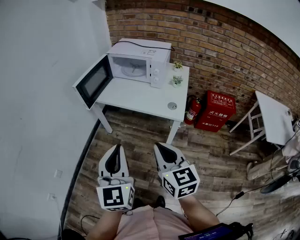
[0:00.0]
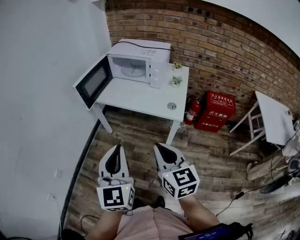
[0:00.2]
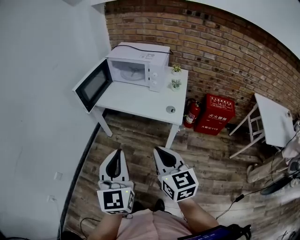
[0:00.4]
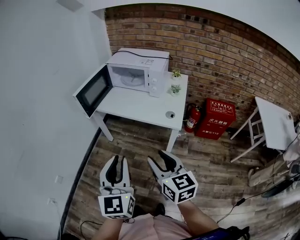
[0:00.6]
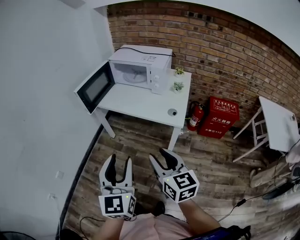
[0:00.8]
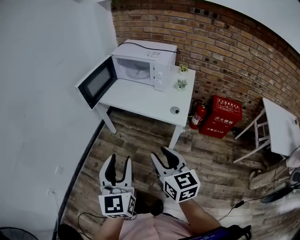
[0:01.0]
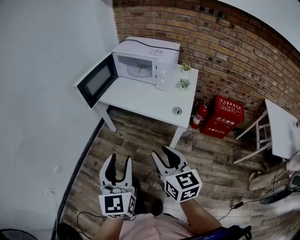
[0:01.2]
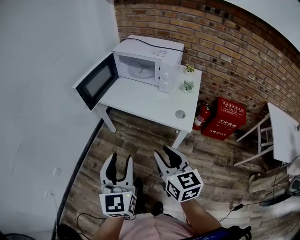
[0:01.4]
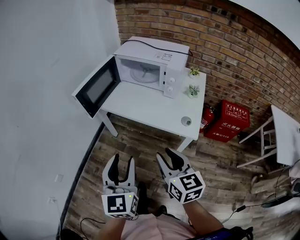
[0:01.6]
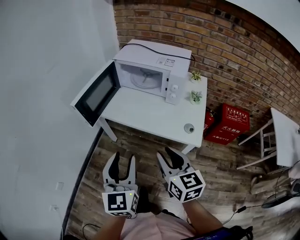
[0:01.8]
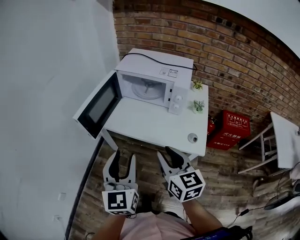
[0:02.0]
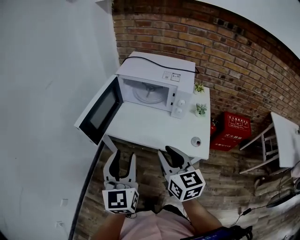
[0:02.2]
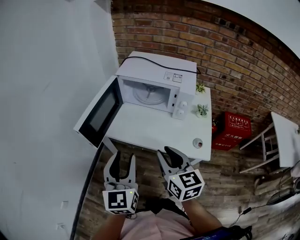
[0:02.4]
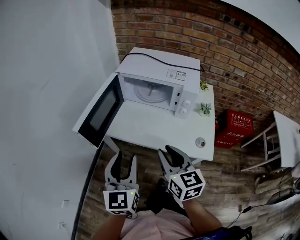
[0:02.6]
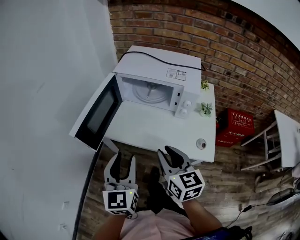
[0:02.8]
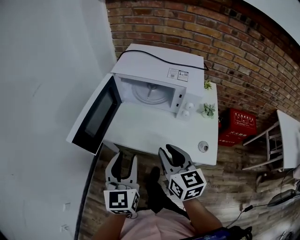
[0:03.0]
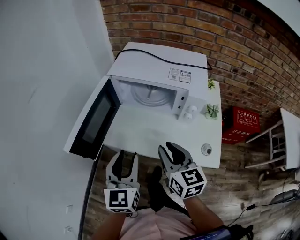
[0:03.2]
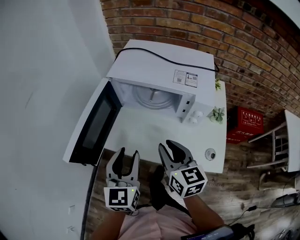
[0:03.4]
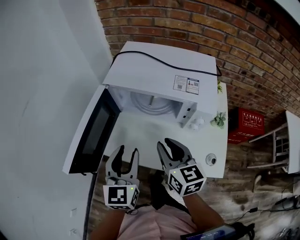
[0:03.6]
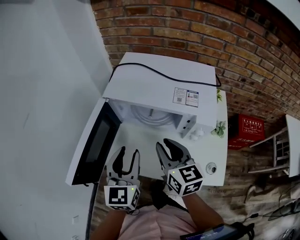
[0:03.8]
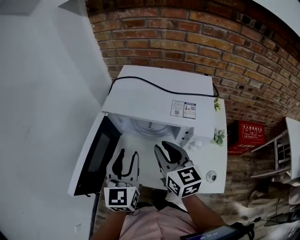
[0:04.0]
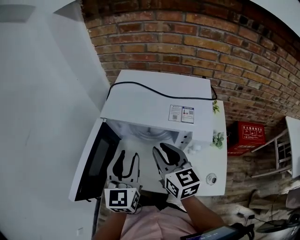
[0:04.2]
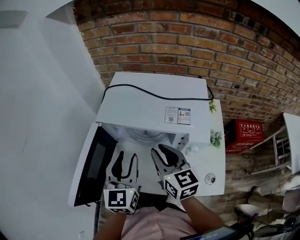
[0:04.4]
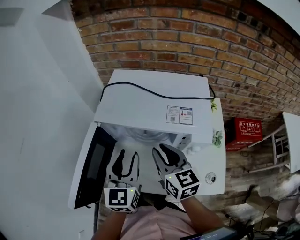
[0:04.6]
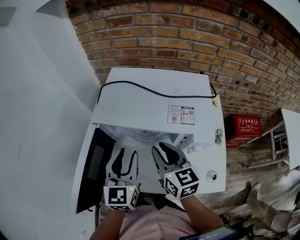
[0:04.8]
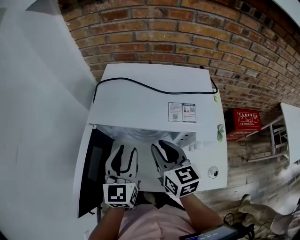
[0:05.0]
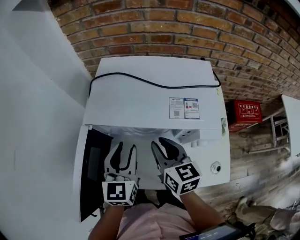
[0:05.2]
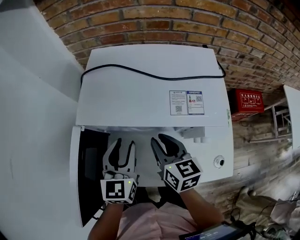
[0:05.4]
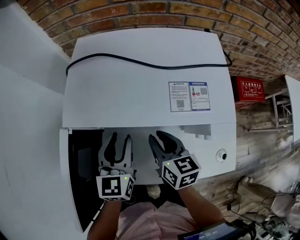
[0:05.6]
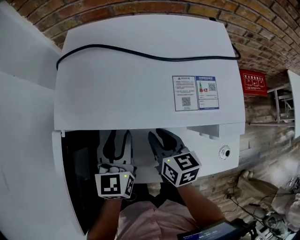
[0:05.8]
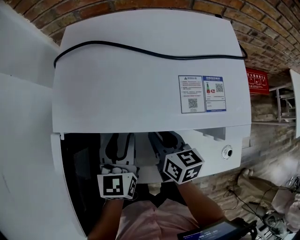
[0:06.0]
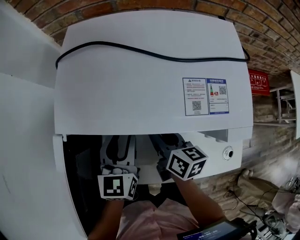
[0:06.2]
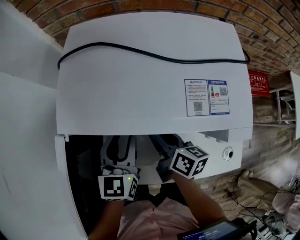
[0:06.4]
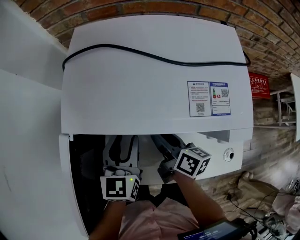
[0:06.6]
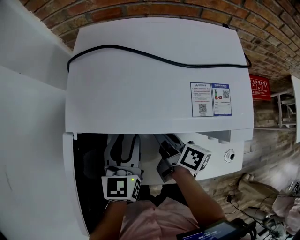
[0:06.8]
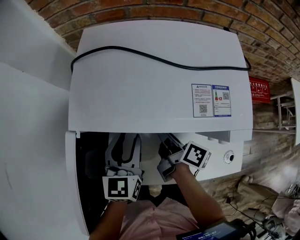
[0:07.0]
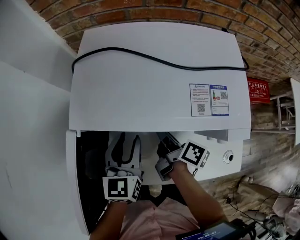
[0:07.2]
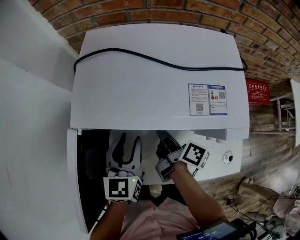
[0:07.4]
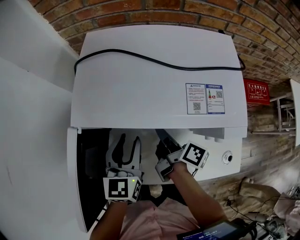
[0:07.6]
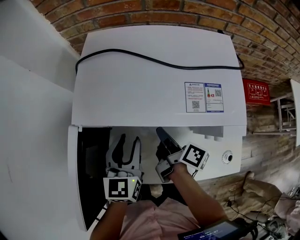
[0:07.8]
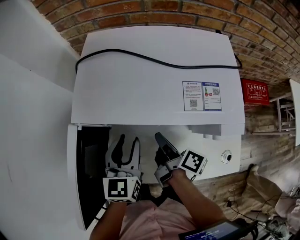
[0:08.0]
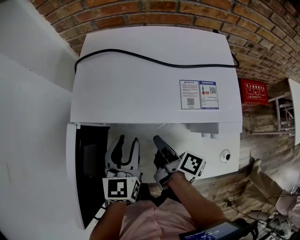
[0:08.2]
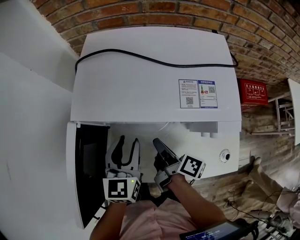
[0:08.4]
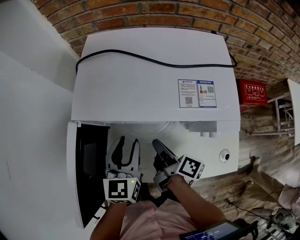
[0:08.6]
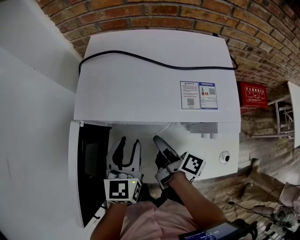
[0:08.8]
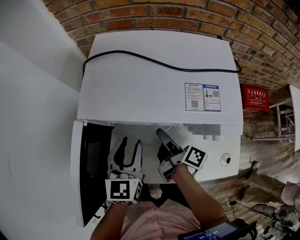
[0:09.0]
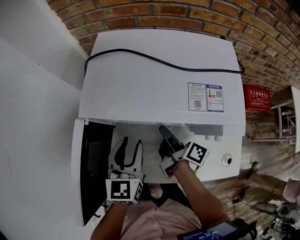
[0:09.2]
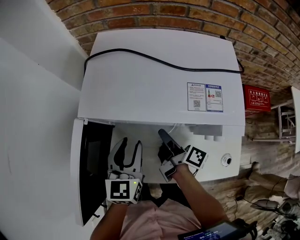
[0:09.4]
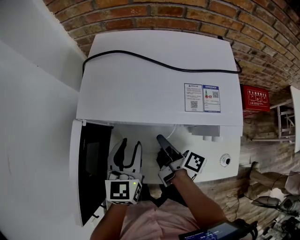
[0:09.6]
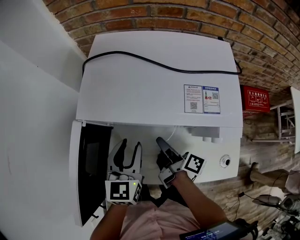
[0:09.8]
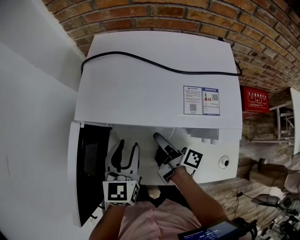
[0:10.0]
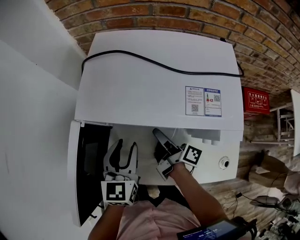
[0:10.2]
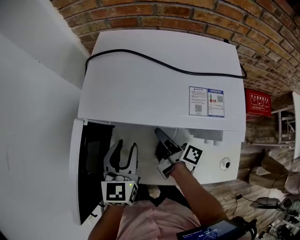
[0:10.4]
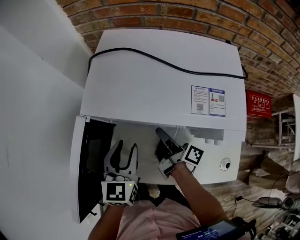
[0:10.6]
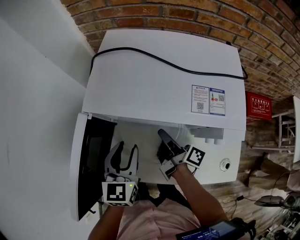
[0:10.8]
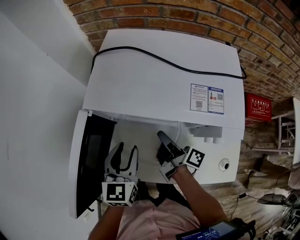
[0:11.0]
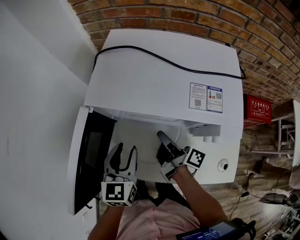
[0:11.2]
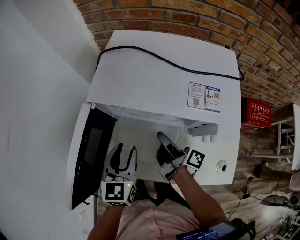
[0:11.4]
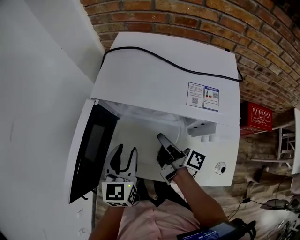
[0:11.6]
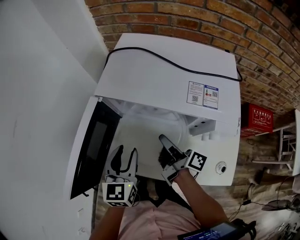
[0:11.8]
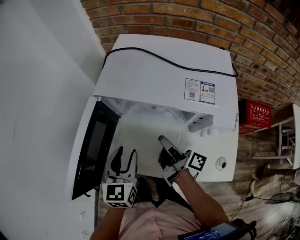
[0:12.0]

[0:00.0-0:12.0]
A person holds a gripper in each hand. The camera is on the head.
0:00.0 to 0:01.6: Both grippers move forward and downward, about 15 cm. The left gripper opens up; the right gripper opens its fingers.
0:01.6 to 0:03.0: Both grippers travel together forward, about 25 cm.
0:03.0 to 0:04.4: Both grippers move forward, roughly 20 cm.
0:04.4 to 0:06.0: The left gripper is displaced downward and forward by roughly 15 cm, while the right gripper moves downward, some 20 cm, and rotates roughly 30 degrees.
0:06.0 to 0:07.6: The right gripper rolls clockwise, seen from behind, by roughly 40 degrees, and closes.
0:07.6 to 0:09.0: The right gripper opens.
0:09.0 to 0:10.4: The right gripper closes.
0:10.4 to 0:12.0: Both grippers move backward, roughly 5 cm.

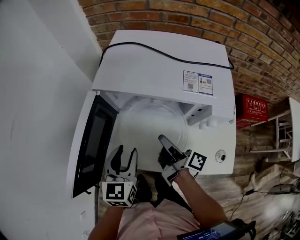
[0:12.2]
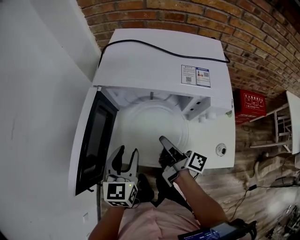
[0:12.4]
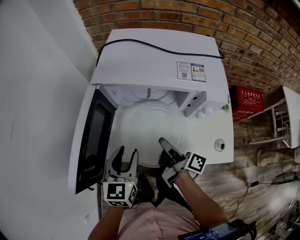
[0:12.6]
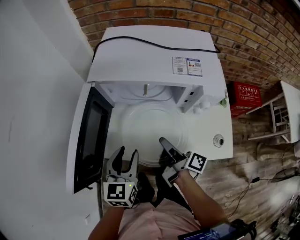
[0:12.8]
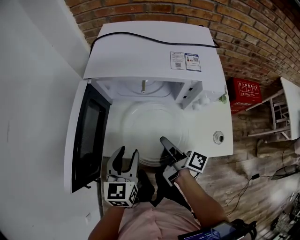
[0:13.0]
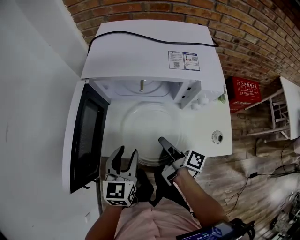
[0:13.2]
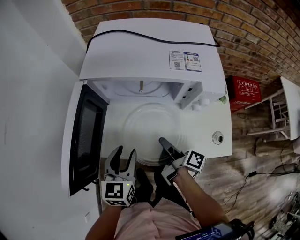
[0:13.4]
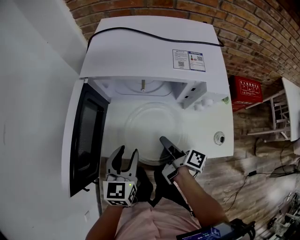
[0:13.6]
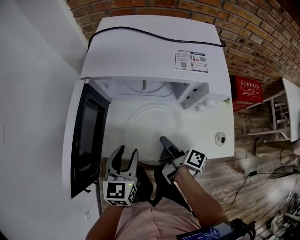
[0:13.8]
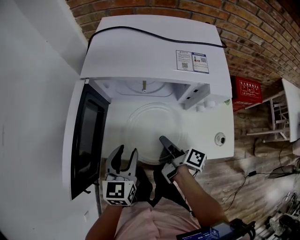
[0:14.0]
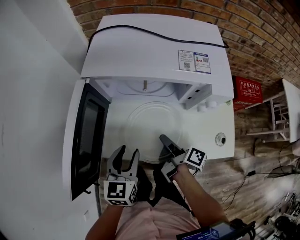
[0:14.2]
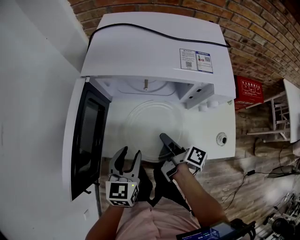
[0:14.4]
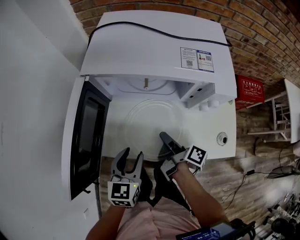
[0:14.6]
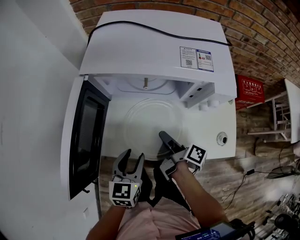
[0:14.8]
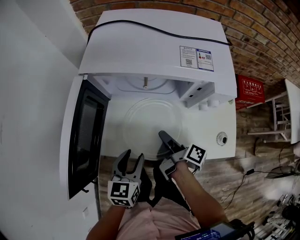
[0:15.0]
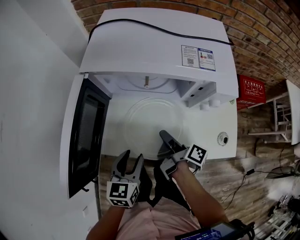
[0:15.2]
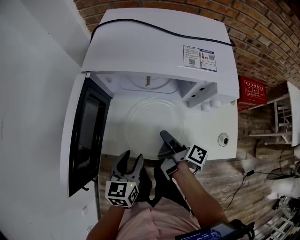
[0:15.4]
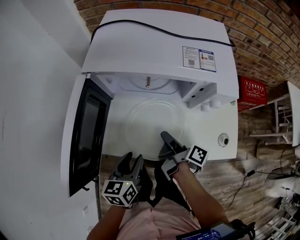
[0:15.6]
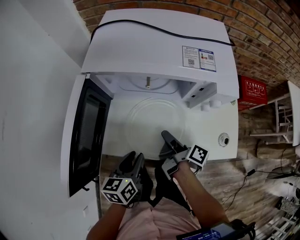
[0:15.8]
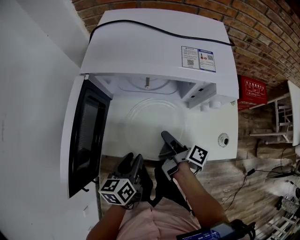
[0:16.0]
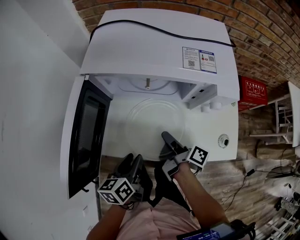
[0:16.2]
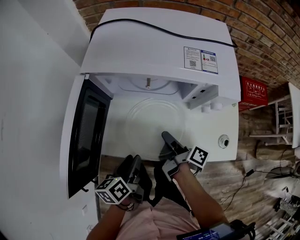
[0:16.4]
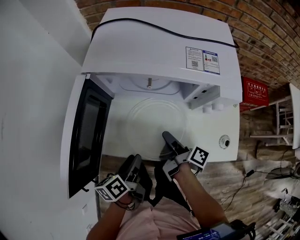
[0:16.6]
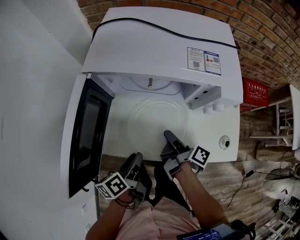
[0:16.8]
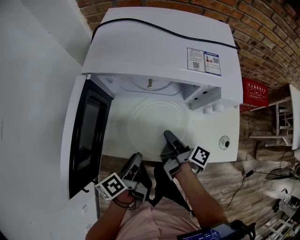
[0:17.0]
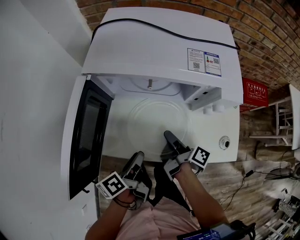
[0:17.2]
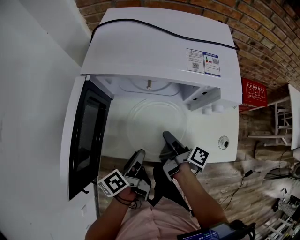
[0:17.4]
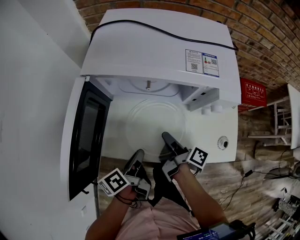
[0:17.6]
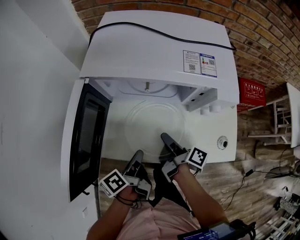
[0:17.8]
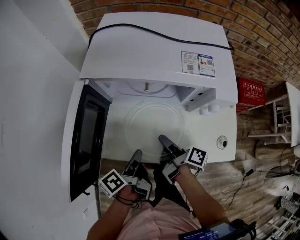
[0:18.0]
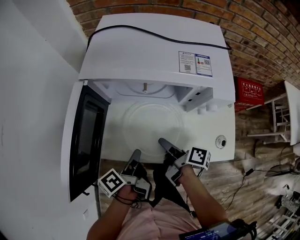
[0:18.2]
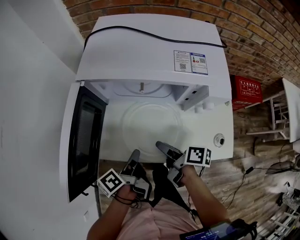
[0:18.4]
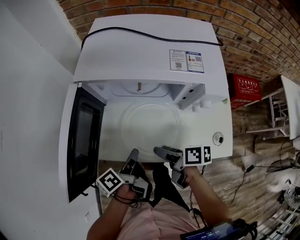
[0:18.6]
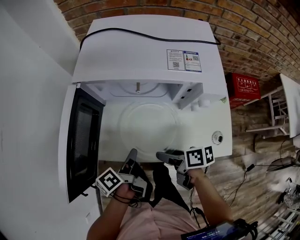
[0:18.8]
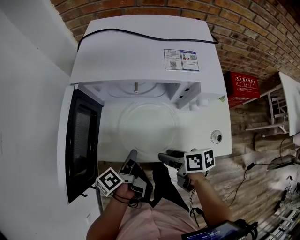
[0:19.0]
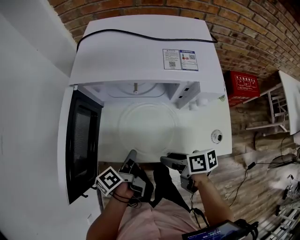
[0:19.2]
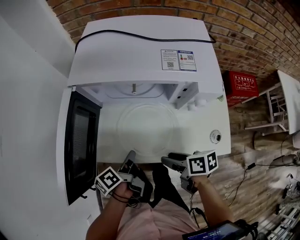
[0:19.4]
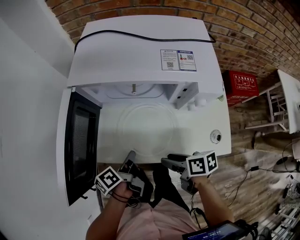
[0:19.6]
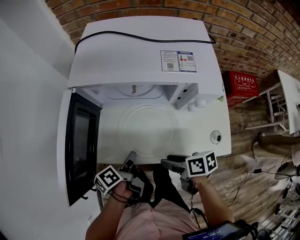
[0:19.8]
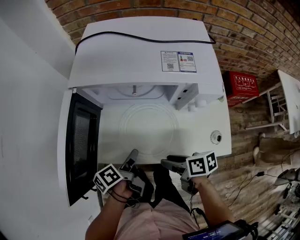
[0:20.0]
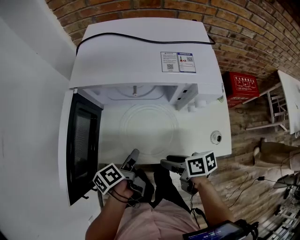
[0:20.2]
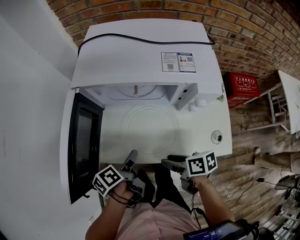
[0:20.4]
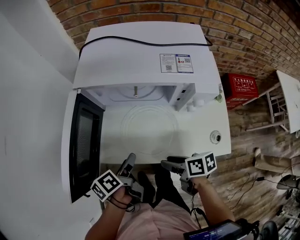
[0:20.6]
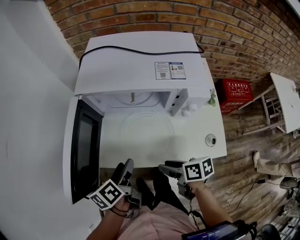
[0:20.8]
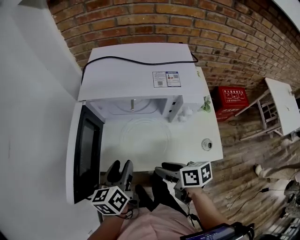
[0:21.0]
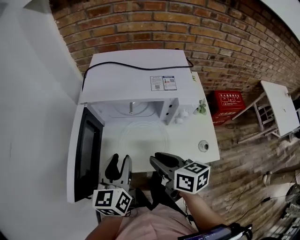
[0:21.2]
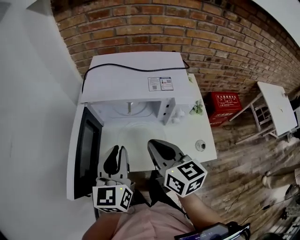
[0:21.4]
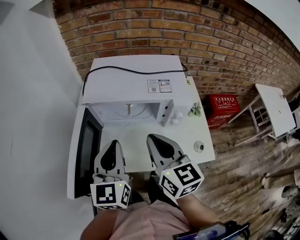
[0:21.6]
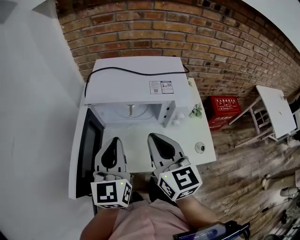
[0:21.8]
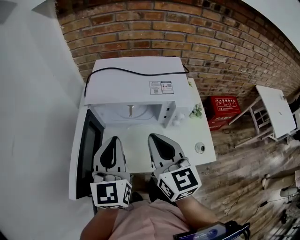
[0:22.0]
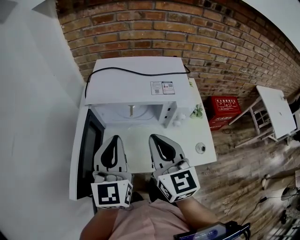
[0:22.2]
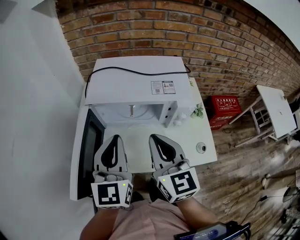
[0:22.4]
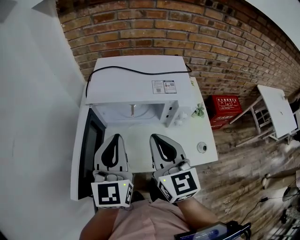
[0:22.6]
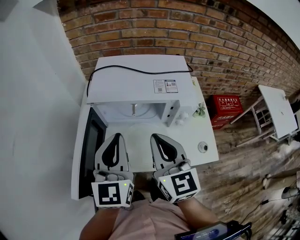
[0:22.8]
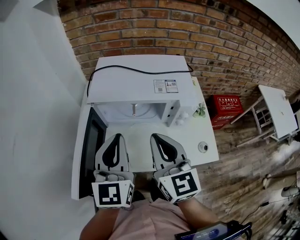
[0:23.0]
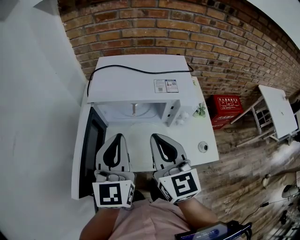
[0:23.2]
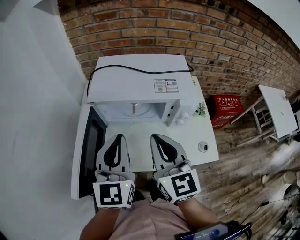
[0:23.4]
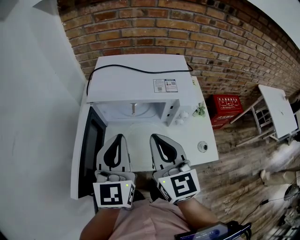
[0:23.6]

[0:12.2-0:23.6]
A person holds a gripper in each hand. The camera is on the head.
0:12.2 to 0:13.6: The right gripper moves backward and downward, roughly 10 cm. Meanwhile the left gripper ends up roughly 5 cm from where it was.
0:13.6 to 0:15.0: The left gripper ends up roughly 5 cm from where it was.
0:15.0 to 0:16.4: The left gripper rotates roughly 40 degrees.
0:16.4 to 0:17.8: The left gripper turns by approximately 30 degrees, and closes up.
0:17.8 to 0:19.4: The right gripper moves backward, roughly 10 cm, rotates about 50 degrees, and opens.
0:19.4 to 0:20.8: The left gripper is displaced upward by roughly 5 cm, changes its angle by about 20 degrees, and opens its fingers.
0:20.8 to 0:22.2: Both grippers move upward, about 25 cm. The right gripper tips its fingers upward by about 30 degrees, and closes its fingers. Meanwhile the left gripper rolls clockwise, seen from behind, by some 60 degrees, and closes.
0:22.2 to 0:23.6: The two grippers keep their place.
